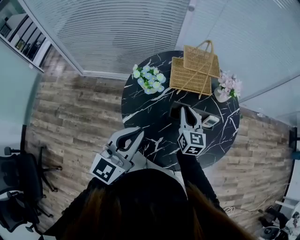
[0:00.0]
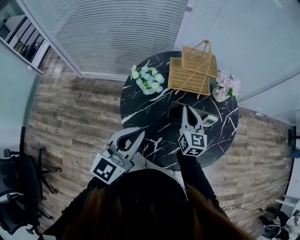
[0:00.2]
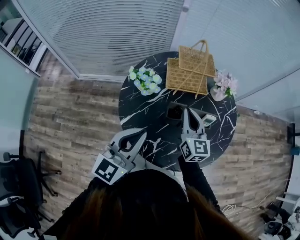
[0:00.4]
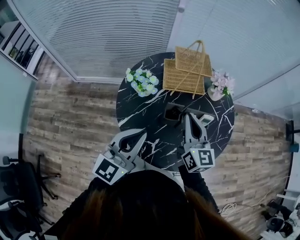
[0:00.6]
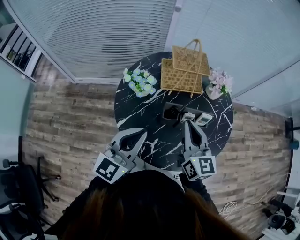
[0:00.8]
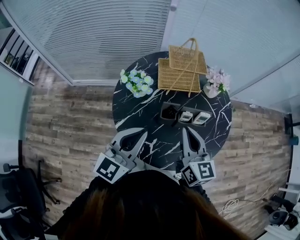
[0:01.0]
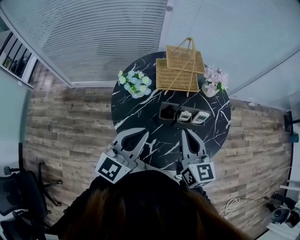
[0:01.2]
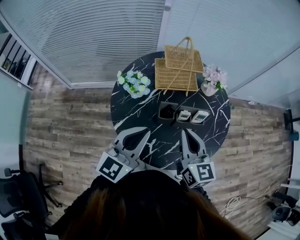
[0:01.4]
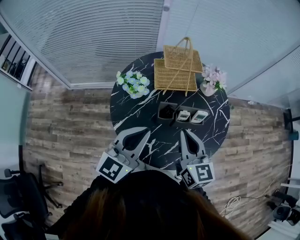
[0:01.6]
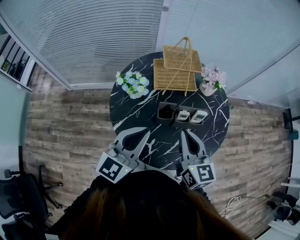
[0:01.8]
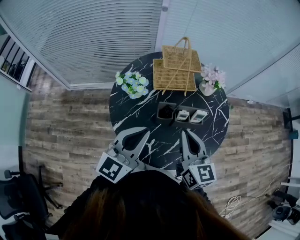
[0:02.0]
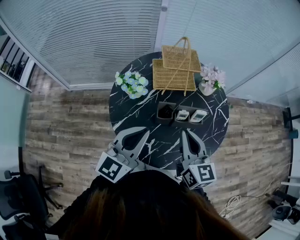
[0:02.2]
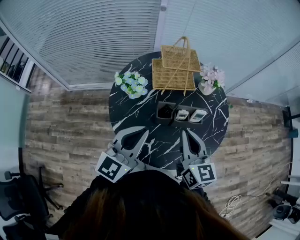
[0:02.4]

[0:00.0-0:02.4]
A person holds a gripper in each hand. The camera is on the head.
0:00.0 to 0:01.2: The right gripper goes about 15 cm backward and upward.
0:01.2 to 0:02.4: Neither gripper changes place.

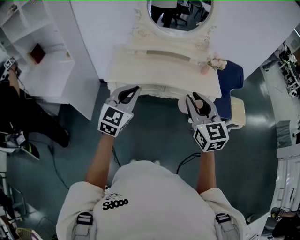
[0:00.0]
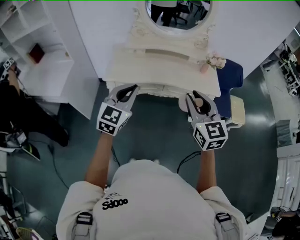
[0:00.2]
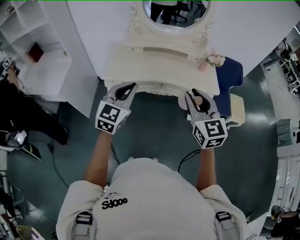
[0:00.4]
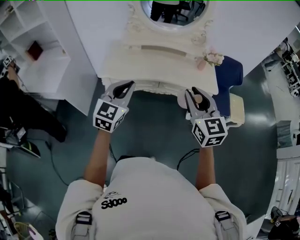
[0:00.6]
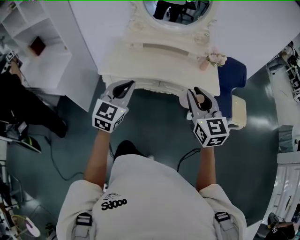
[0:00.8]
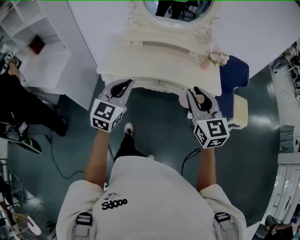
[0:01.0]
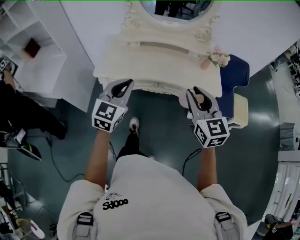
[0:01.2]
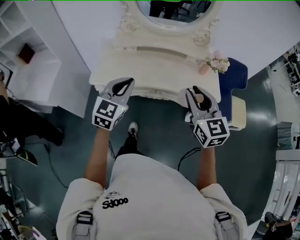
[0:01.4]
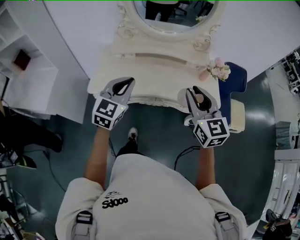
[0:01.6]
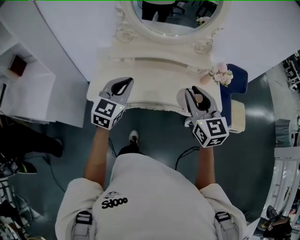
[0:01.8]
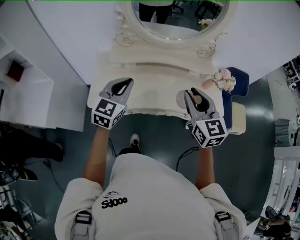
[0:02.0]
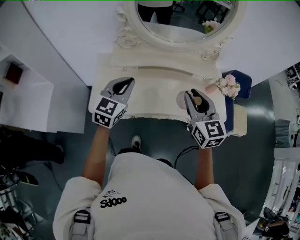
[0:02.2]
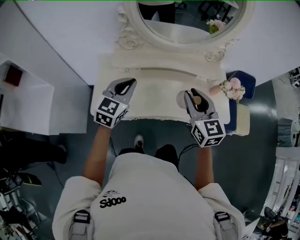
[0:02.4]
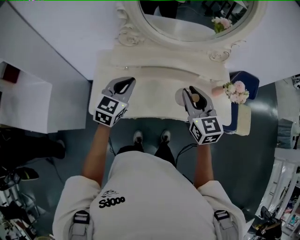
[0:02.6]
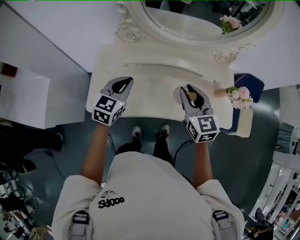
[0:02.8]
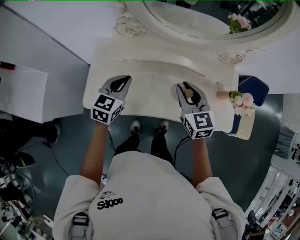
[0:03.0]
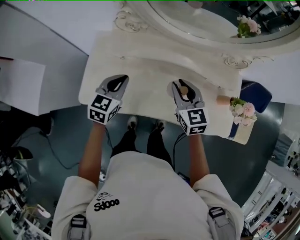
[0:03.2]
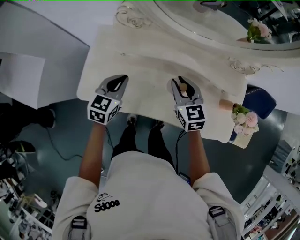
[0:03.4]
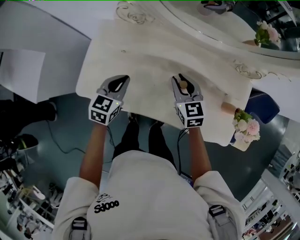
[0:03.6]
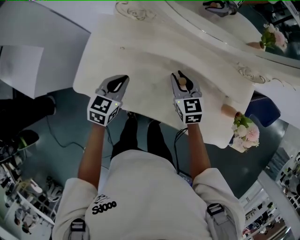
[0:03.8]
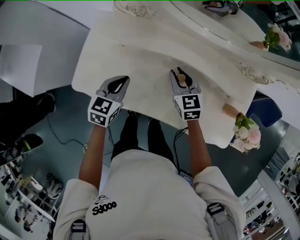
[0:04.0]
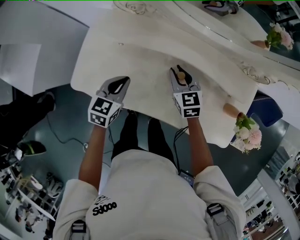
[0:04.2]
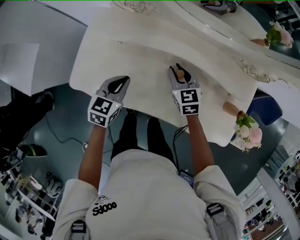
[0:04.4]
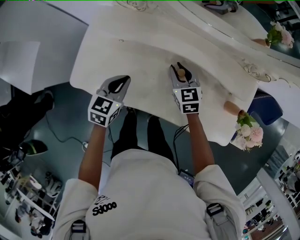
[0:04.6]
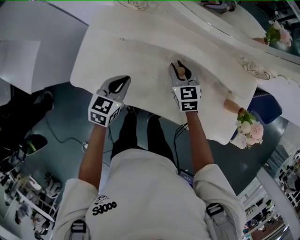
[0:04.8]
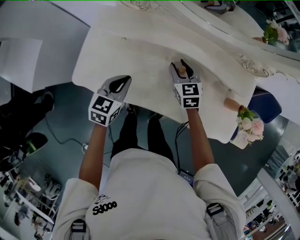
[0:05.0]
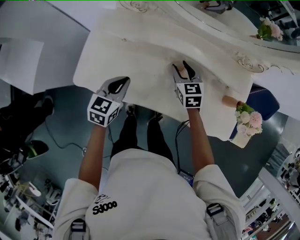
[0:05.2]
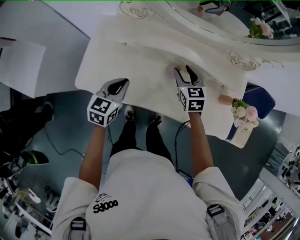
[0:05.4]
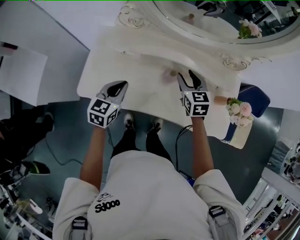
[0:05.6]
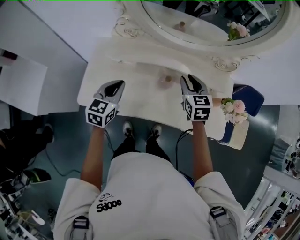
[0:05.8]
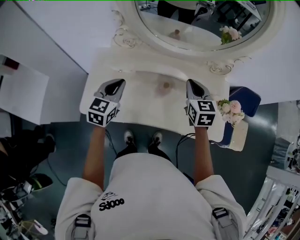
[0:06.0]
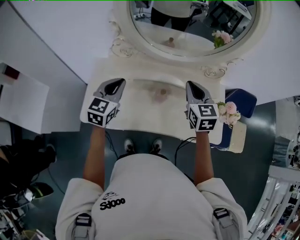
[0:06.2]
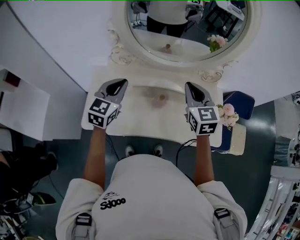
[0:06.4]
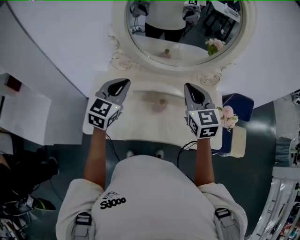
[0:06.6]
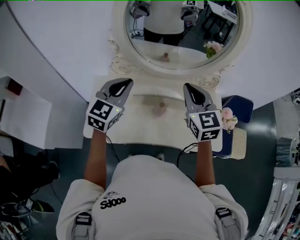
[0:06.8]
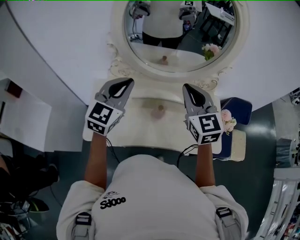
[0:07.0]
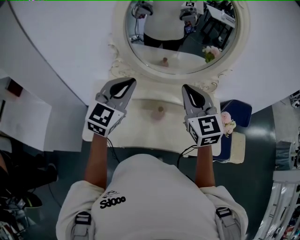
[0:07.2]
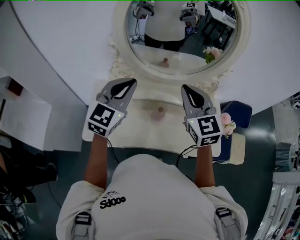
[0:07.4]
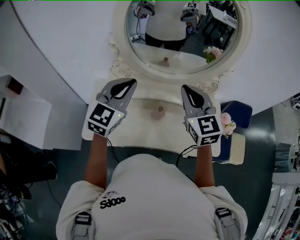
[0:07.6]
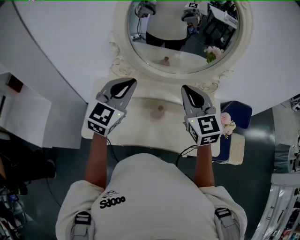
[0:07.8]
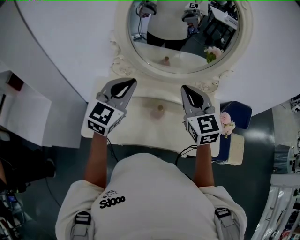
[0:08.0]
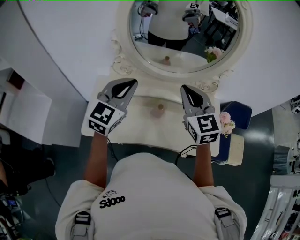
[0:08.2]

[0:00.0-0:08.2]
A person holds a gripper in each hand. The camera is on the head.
0:00.0 to 0:01.6: The two grippers go approximately 20 cm forward.
0:01.6 to 0:03.2: The grippers both shift forward and downward by approximately 30 cm. The left gripper swivels roughly 20 degrees.
0:03.2 to 0:05.0: The right gripper travels downward and forward by about 15 cm, while the left gripper is displaced downward by approximately 5 cm.
0:05.0 to 0:06.6: Both grippers travel together upward, roughly 25 cm. The left gripper rotates some 30 degrees. The right gripper rotates some 20 degrees, and closes.
0:06.6 to 0:08.2: The left gripper is displaced upward by approximately 5 cm.

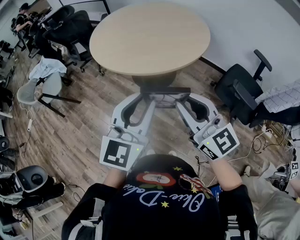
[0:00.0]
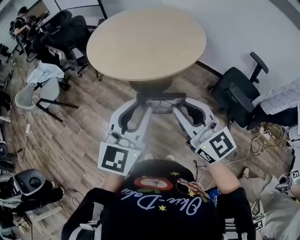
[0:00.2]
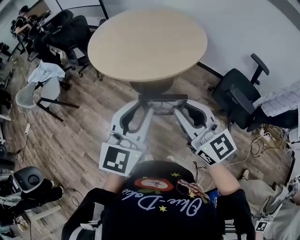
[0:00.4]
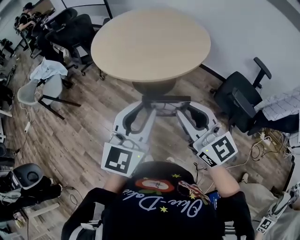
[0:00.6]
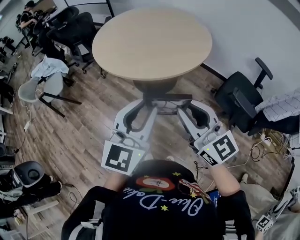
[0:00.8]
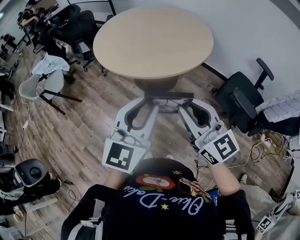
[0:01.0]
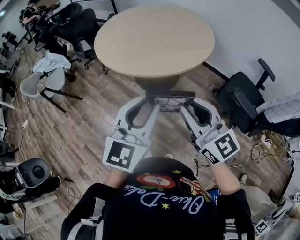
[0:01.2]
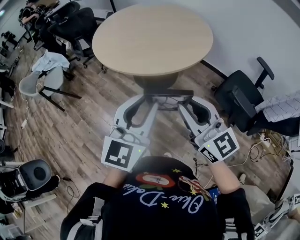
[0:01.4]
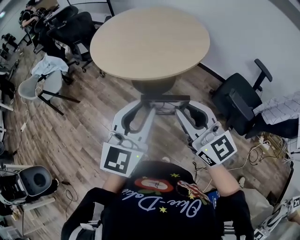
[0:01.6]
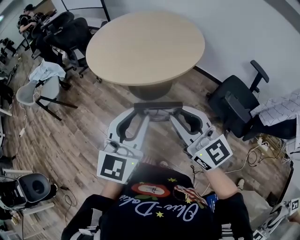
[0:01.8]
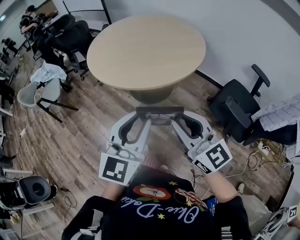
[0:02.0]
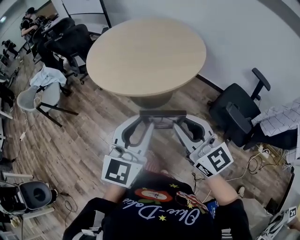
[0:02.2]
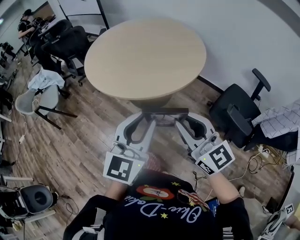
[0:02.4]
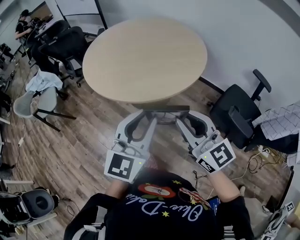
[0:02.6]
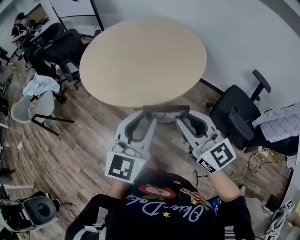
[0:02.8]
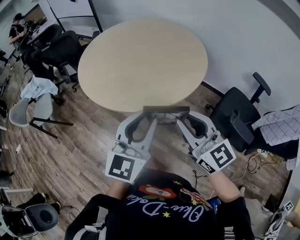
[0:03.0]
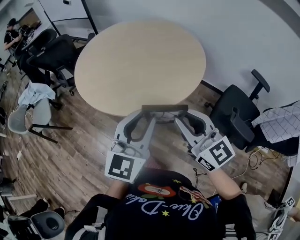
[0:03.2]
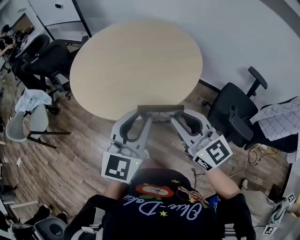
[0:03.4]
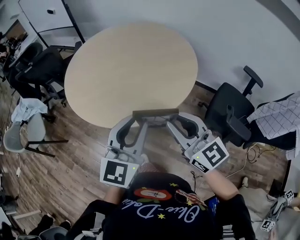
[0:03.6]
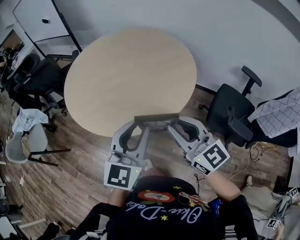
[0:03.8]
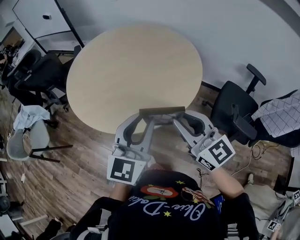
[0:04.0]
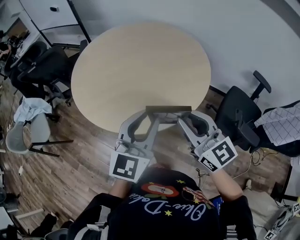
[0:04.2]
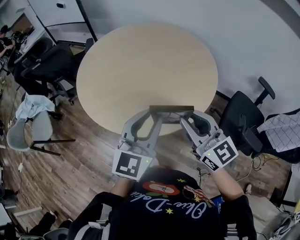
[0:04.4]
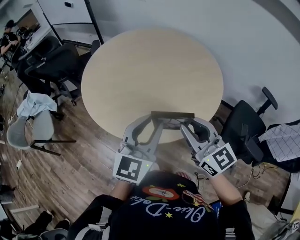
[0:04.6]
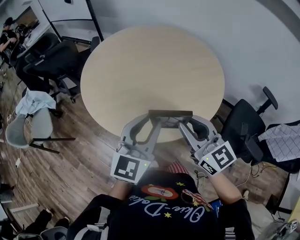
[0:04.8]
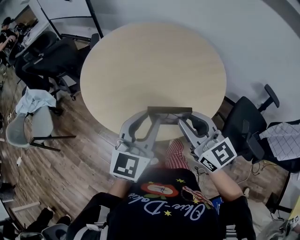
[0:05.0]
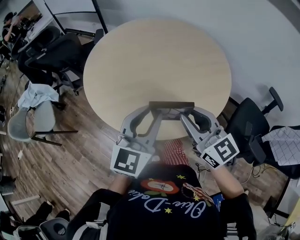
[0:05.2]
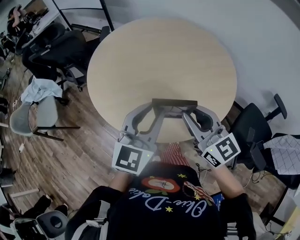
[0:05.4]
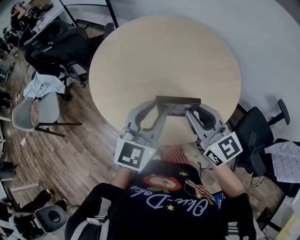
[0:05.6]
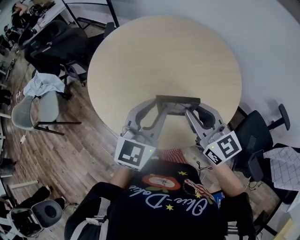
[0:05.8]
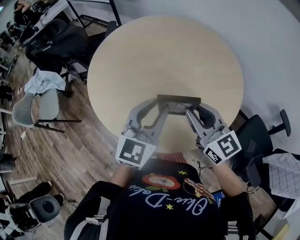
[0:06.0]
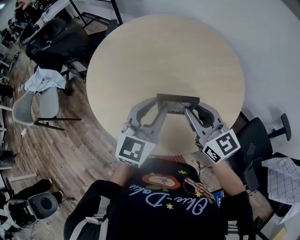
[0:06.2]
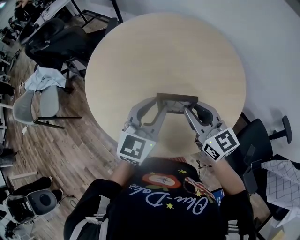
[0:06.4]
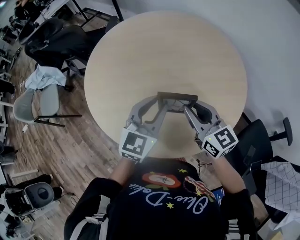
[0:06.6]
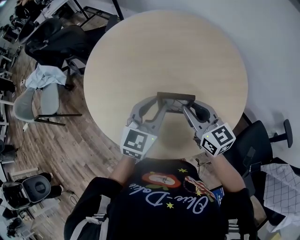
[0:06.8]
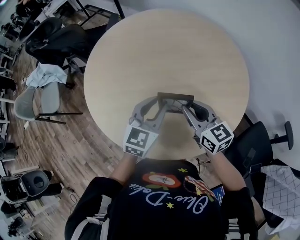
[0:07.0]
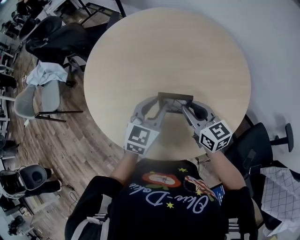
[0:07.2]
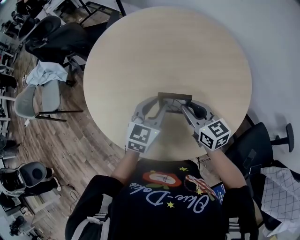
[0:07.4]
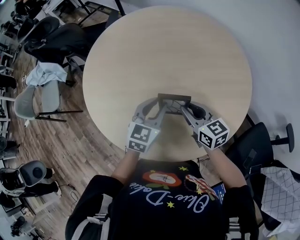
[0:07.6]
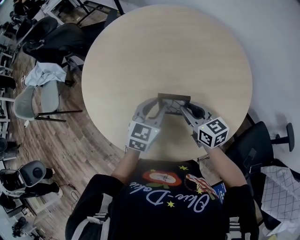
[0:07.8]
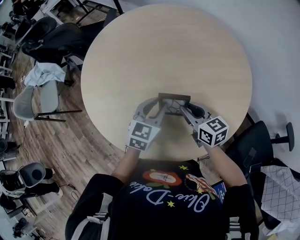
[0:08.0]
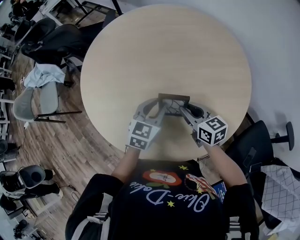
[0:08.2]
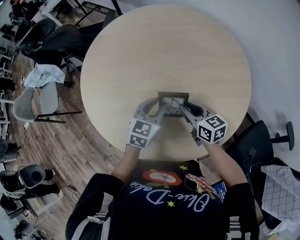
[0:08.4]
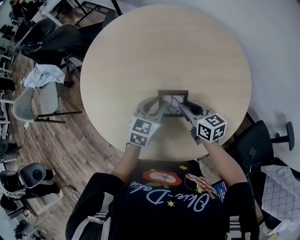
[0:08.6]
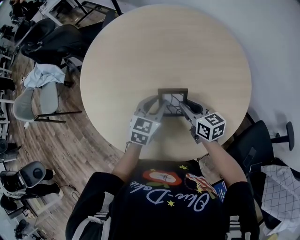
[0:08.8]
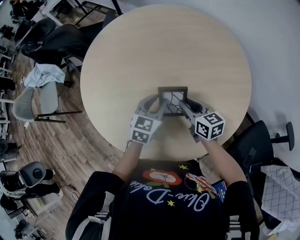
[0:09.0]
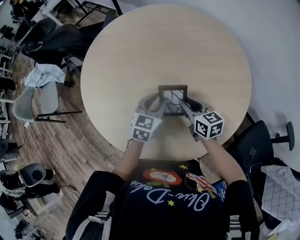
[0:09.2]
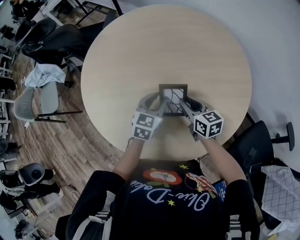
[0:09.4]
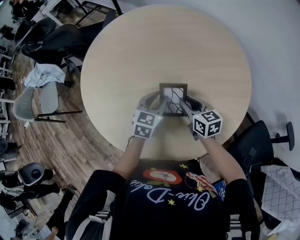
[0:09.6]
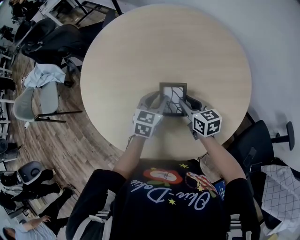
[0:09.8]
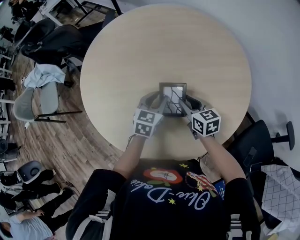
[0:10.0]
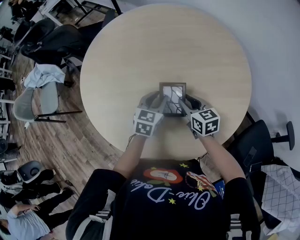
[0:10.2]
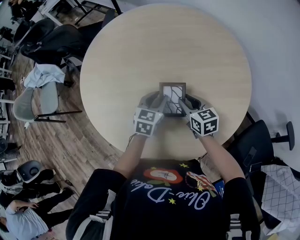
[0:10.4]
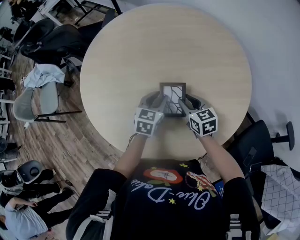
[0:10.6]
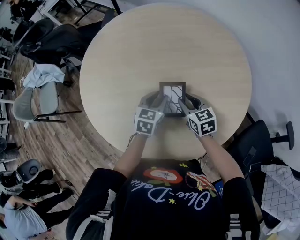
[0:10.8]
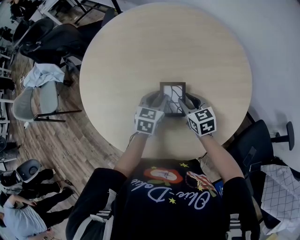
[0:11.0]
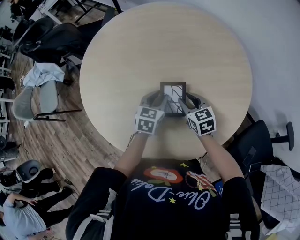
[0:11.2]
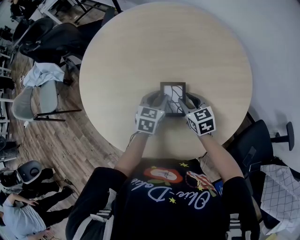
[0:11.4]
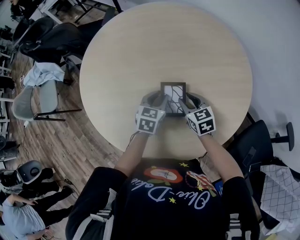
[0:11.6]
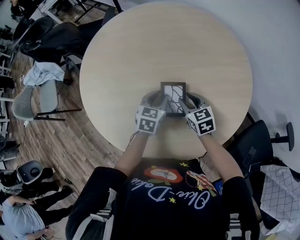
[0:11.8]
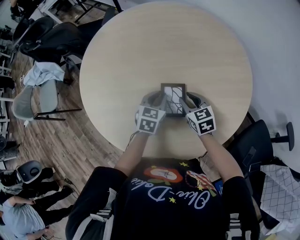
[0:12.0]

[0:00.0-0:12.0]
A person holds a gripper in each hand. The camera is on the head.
0:00.0 to 0:01.6: The right gripper shifts by approximately 5 cm.
0:01.6 to 0:03.0: Both grippers move forward, approximately 15 cm.
0:03.0 to 0:04.4: Both grippers move forward and to the left, about 15 cm.
0:04.4 to 0:06.0: Both grippers travel together forward, roughly 15 cm.
0:06.0 to 0:07.6: Both grippers move downward and forward, approximately 15 cm. The right gripper turns by some 20 degrees.
0:07.6 to 0:09.0: The right gripper ends up roughly 5 cm from where it was. Meanwhile the left gripper shifts by about 5 cm.
0:09.0 to 0:10.4: The grippers make only small movements.
0:10.4 to 0:12.0: The grippers make only small movements.

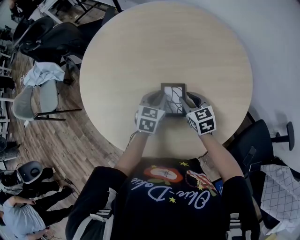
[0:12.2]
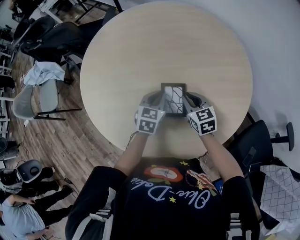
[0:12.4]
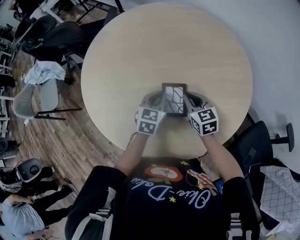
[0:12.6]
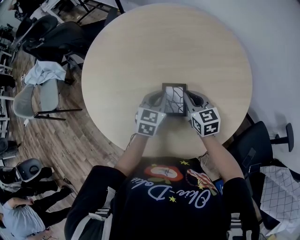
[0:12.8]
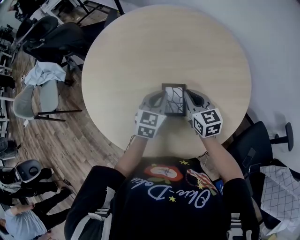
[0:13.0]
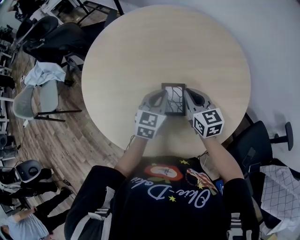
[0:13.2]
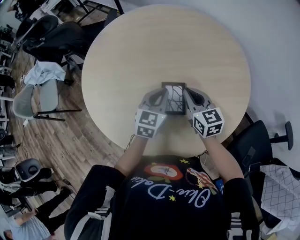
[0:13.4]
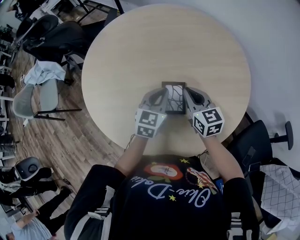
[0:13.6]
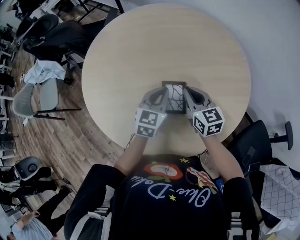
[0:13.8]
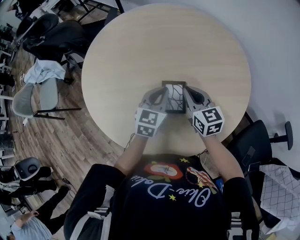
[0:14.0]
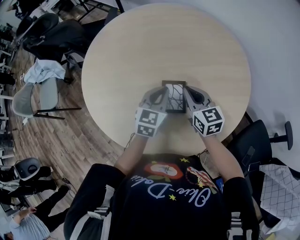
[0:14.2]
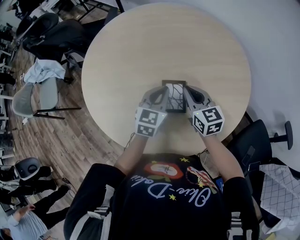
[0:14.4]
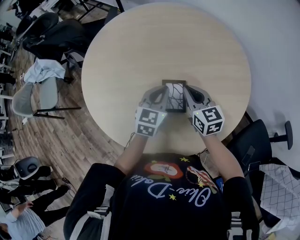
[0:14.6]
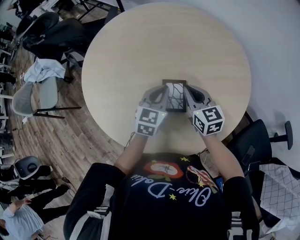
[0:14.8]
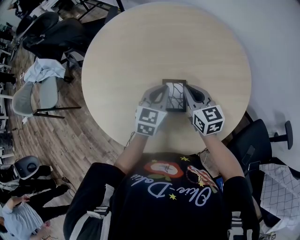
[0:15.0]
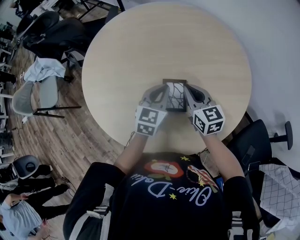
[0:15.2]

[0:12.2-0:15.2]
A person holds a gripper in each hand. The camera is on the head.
0:12.2 to 0:13.8: Both grippers move upward, about 10 cm. The right gripper closes its fingers.
0:13.8 to 0:15.2: The two grippers keep their place.
